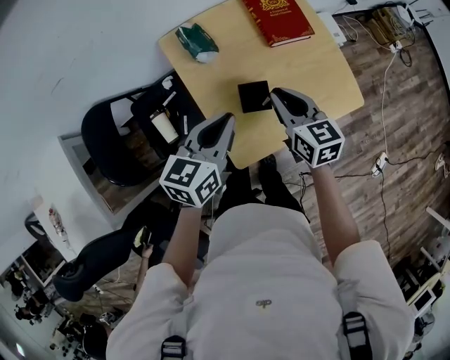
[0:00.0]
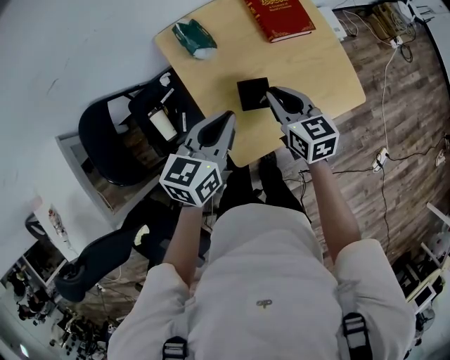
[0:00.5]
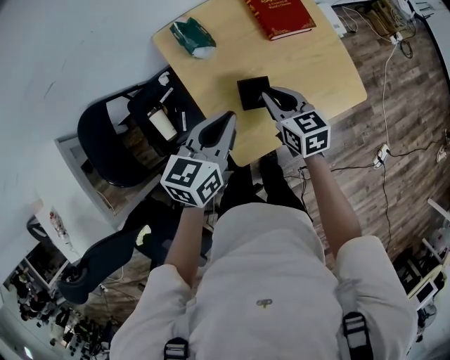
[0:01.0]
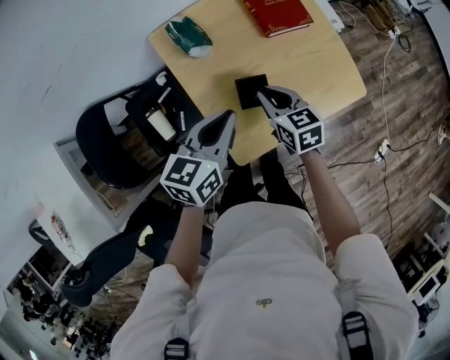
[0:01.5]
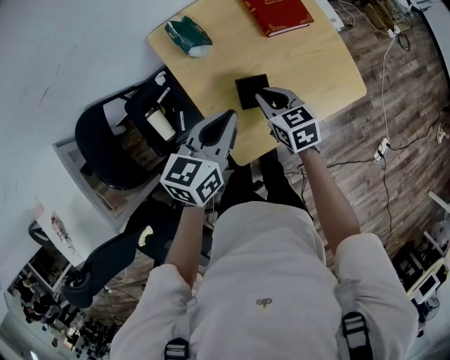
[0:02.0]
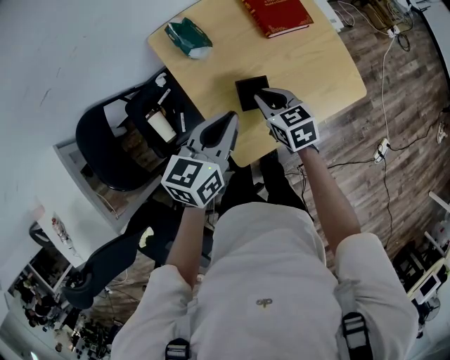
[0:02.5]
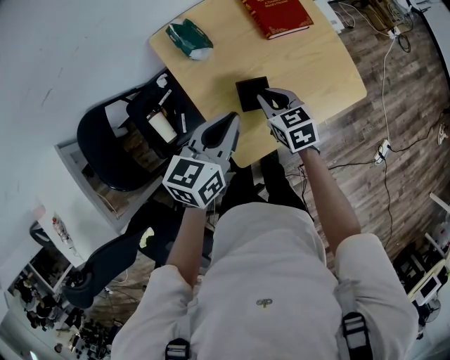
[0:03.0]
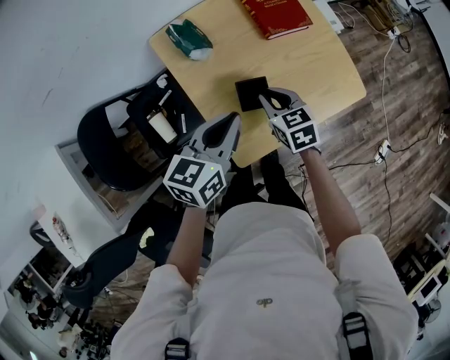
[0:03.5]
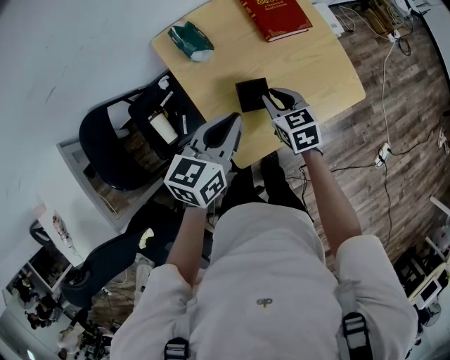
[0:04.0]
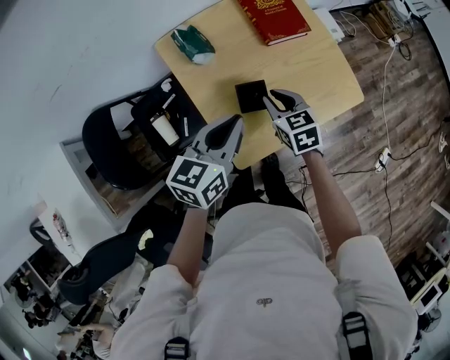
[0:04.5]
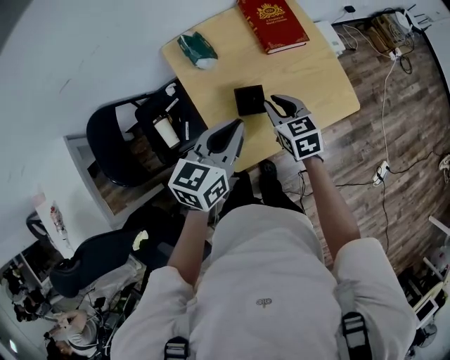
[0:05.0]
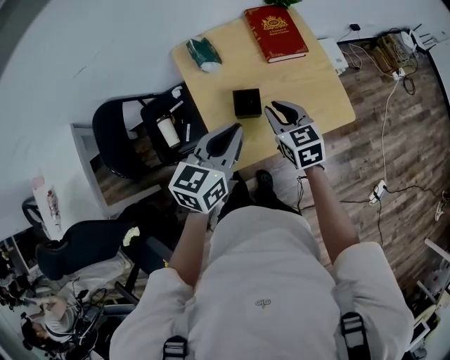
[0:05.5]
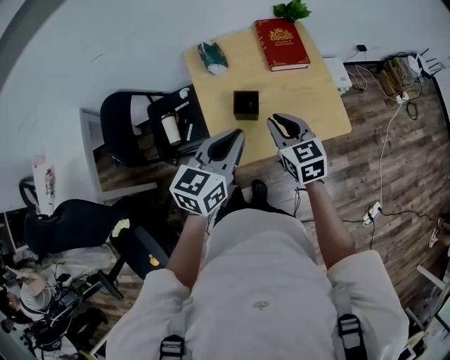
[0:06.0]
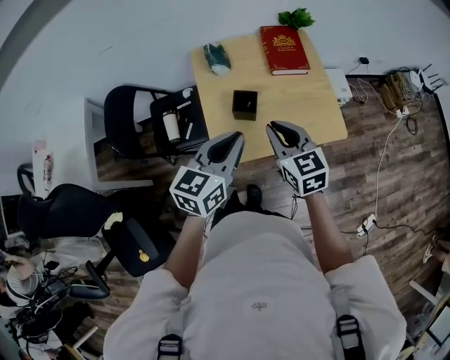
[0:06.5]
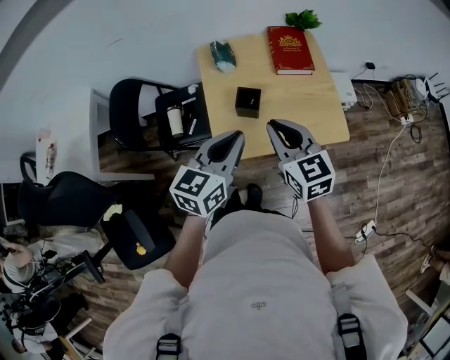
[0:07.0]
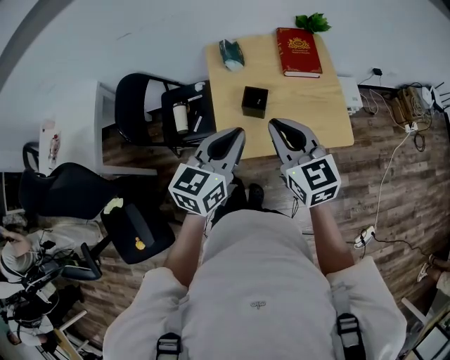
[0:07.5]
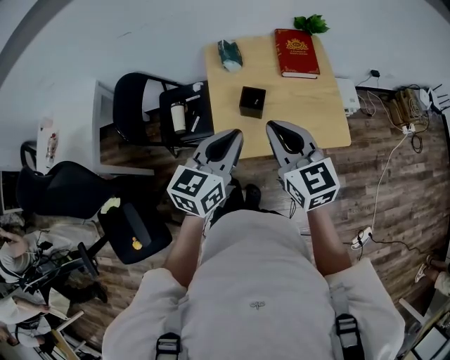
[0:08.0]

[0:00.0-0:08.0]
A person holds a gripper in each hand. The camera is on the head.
0:00.0 to 0:02.0: The right gripper is displaced downward by approximately 10 cm.
0:02.0 to 0:04.0: There are only small adjustments of the grippers.
0:04.0 to 0:06.0: The right gripper heads upward and backward, covering roughly 15 cm, while the left gripper goes about 15 cm backward, upward and to the right.
0:06.0 to 0:08.0: The left gripper travels backward by approximately 5 cm; the right gripper shifts approximately 15 cm upward and backward.

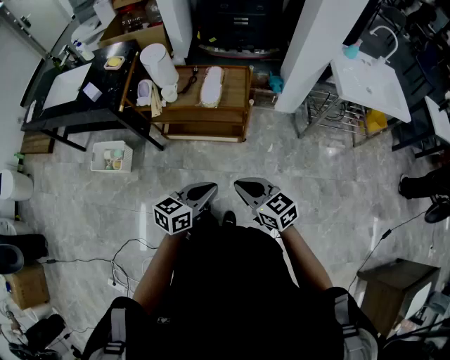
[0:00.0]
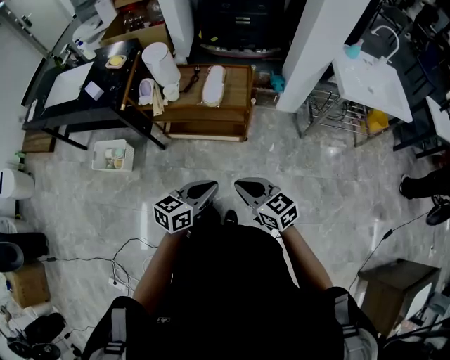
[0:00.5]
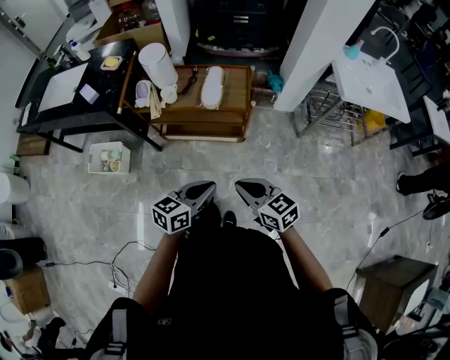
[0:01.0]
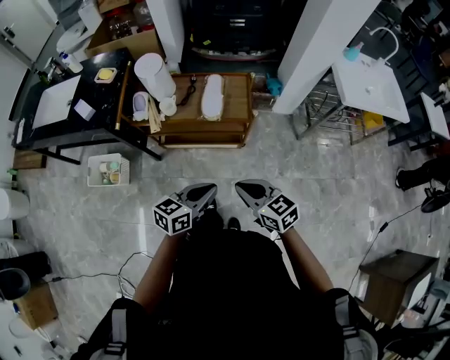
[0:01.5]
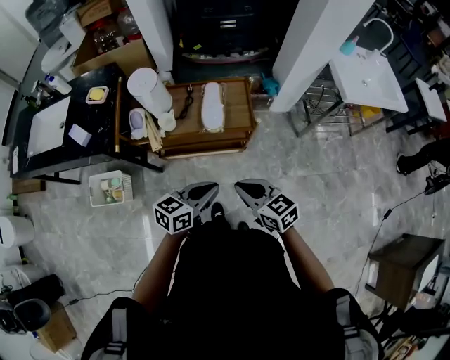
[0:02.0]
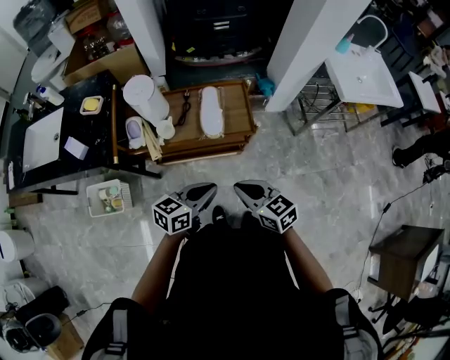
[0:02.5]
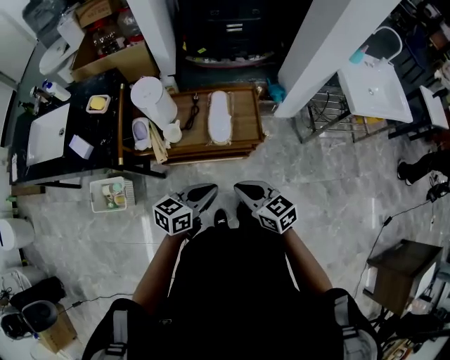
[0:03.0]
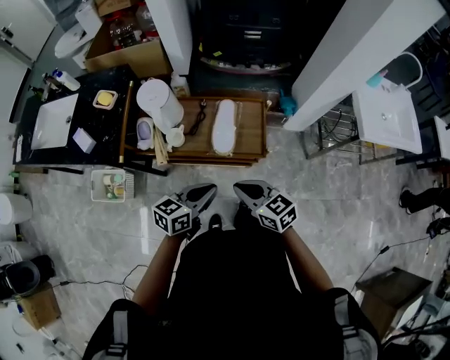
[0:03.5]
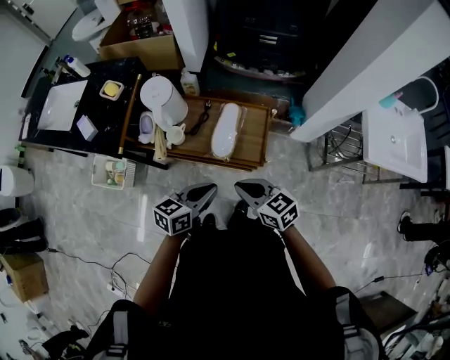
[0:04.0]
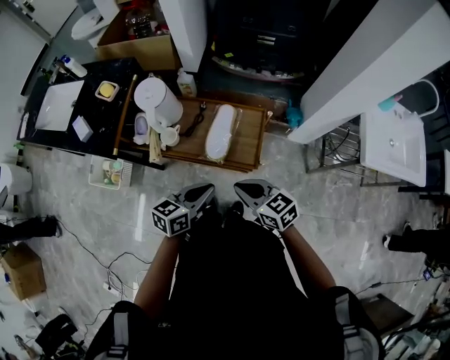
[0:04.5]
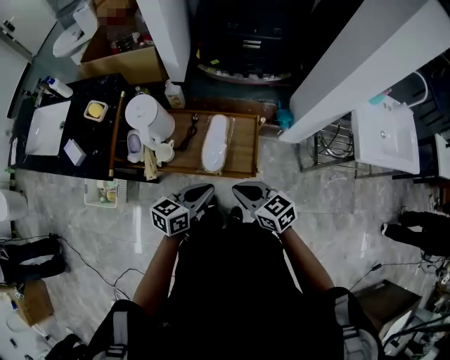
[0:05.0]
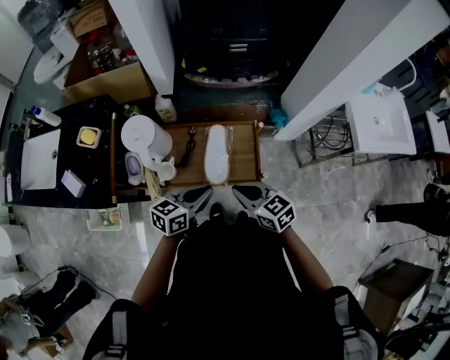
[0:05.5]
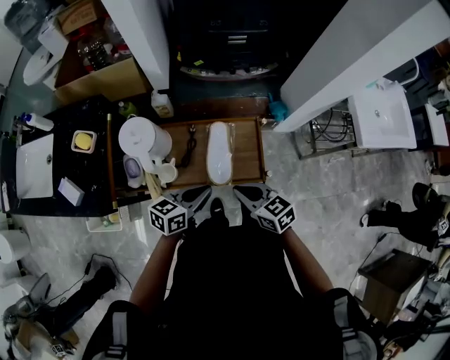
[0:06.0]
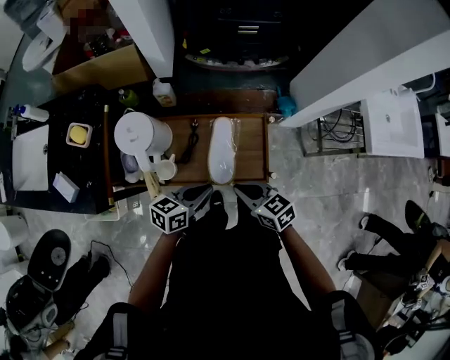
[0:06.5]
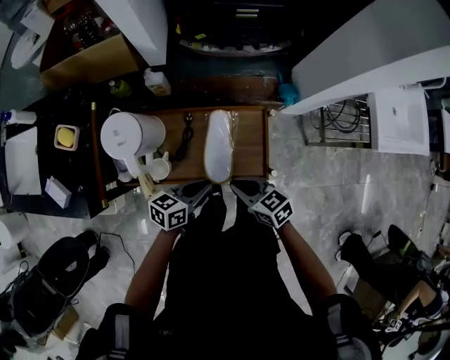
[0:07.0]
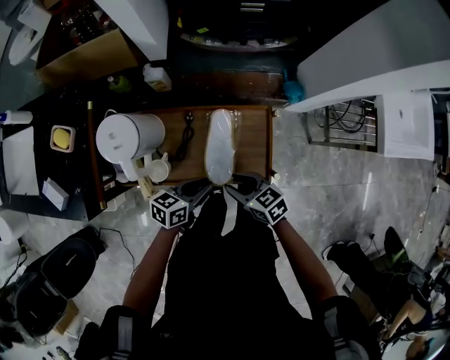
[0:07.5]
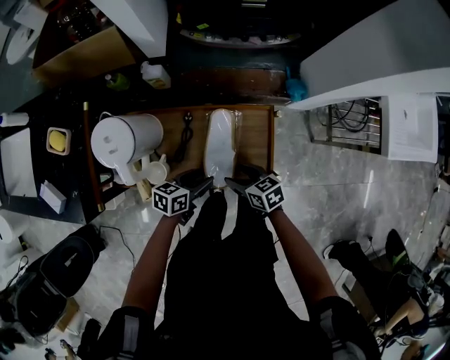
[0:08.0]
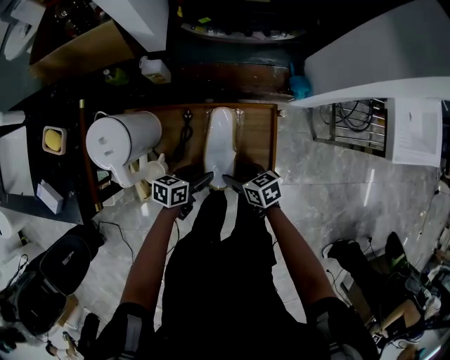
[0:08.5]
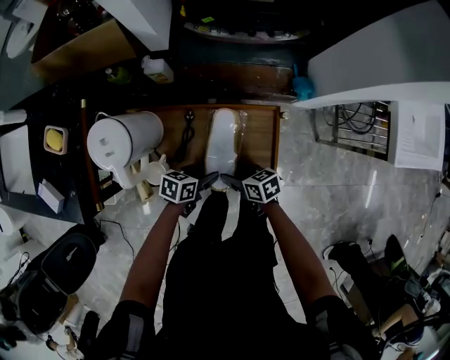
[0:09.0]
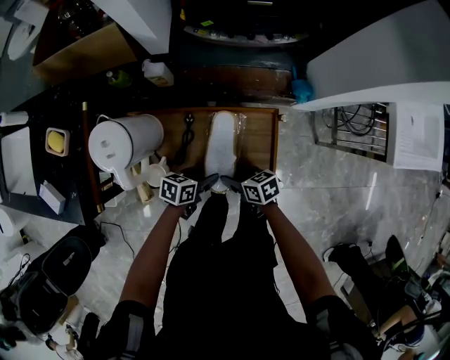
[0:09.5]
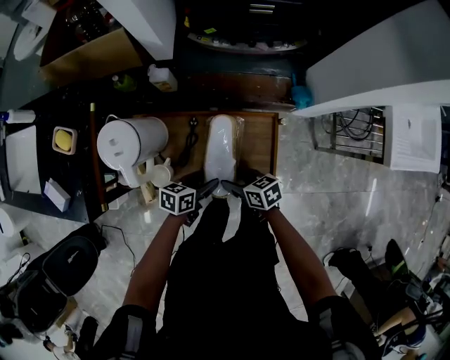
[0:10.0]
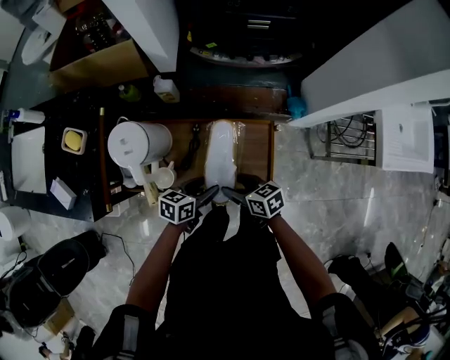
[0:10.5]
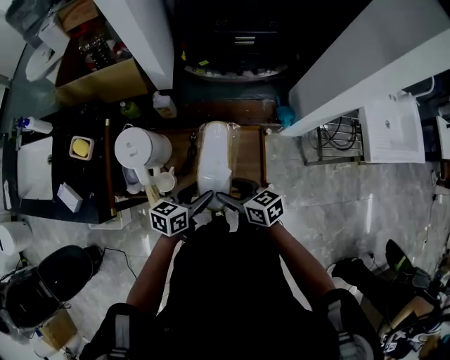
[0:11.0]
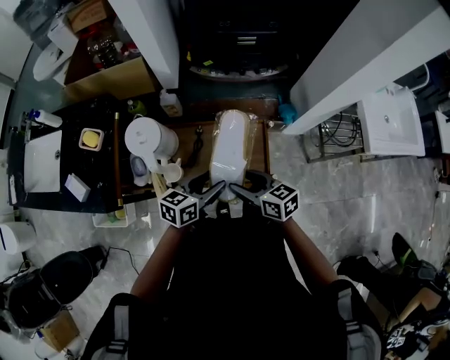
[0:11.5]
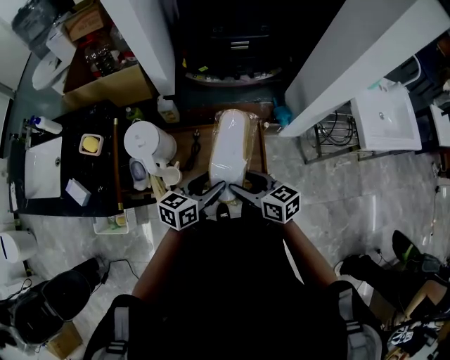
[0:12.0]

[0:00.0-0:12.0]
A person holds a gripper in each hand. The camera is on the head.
0:00.0 to 0:02.0: Both grippers move forward and to the left, approximately 20 cm.
0:02.0 to 0:04.0: Both grippers move forward, about 15 cm.
0:04.0 to 0:06.0: Both grippers move forward, approximately 10 cm.
0:06.0 to 0:08.0: The grippers both shift downward by some 20 cm. The right gripper opens up. The left gripper opens its fingers.
0:08.0 to 0:10.0: The grippers make only small movements.
0:10.0 to 0:12.0: The grippers both shift upward by about 20 cm. The left gripper rotates approximately 20 degrees; the right gripper turns by some 20 degrees.

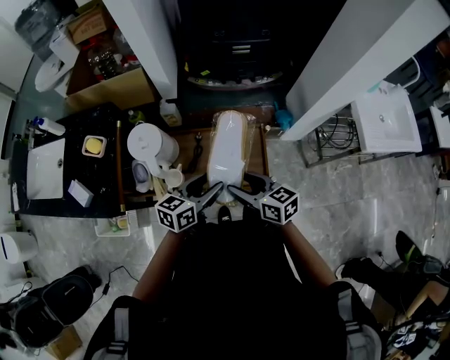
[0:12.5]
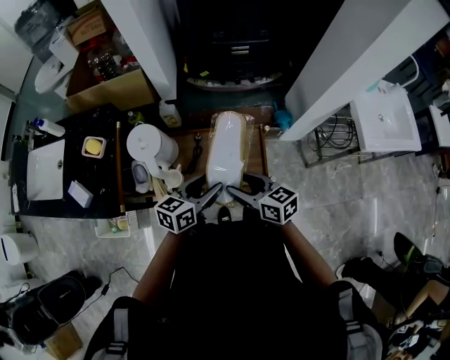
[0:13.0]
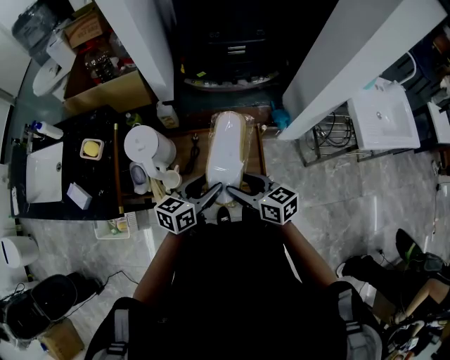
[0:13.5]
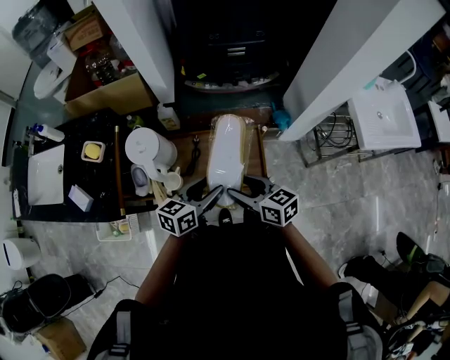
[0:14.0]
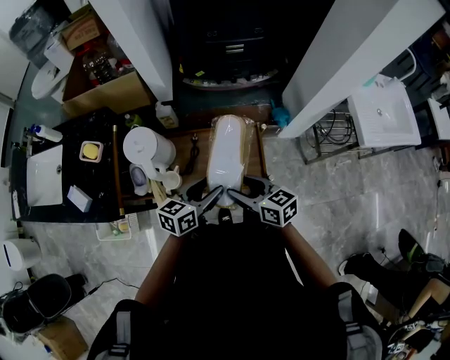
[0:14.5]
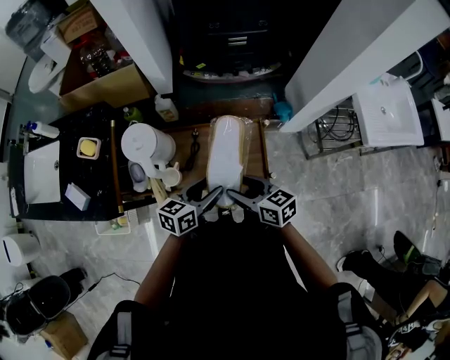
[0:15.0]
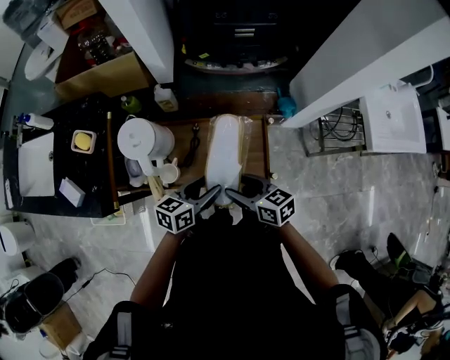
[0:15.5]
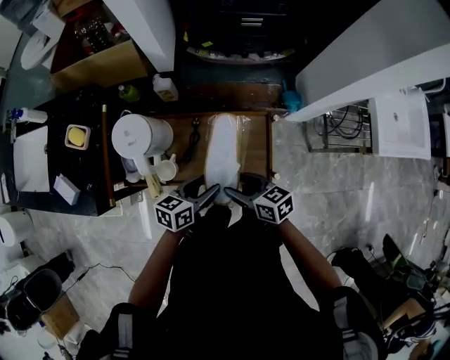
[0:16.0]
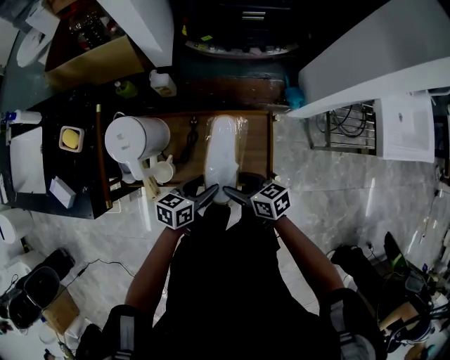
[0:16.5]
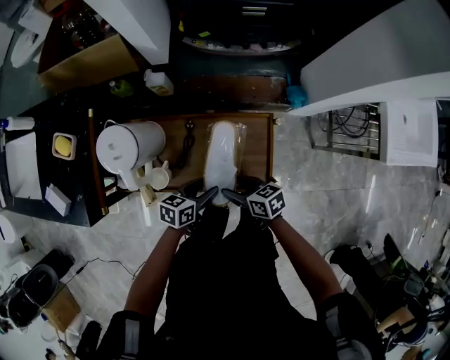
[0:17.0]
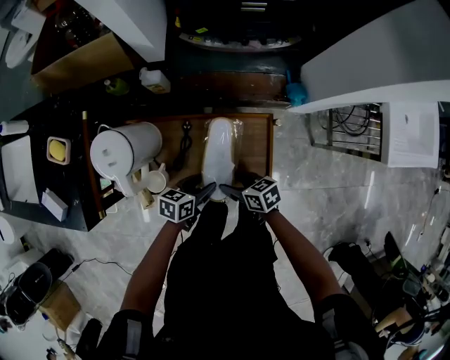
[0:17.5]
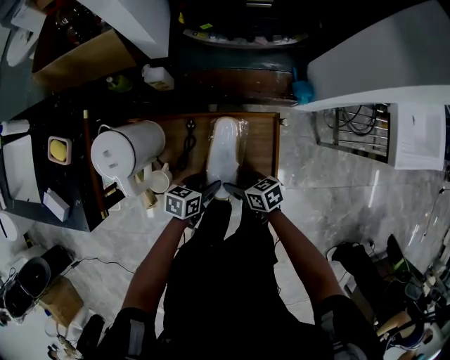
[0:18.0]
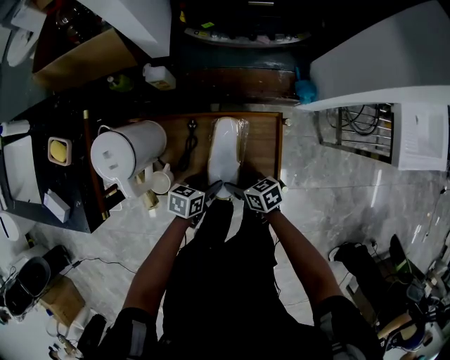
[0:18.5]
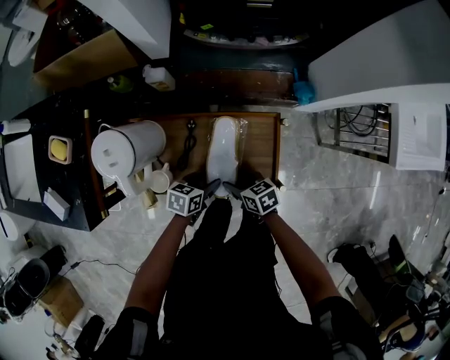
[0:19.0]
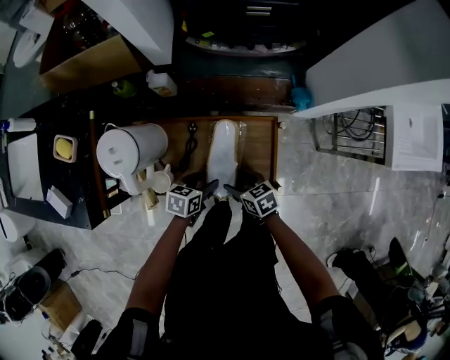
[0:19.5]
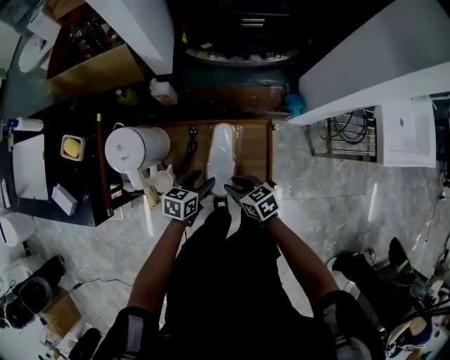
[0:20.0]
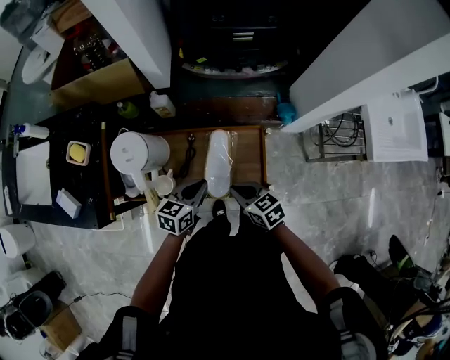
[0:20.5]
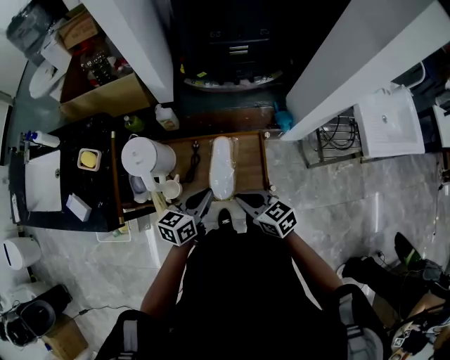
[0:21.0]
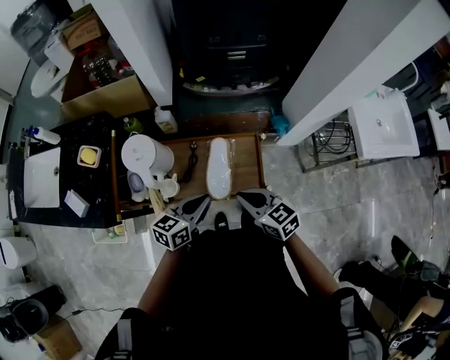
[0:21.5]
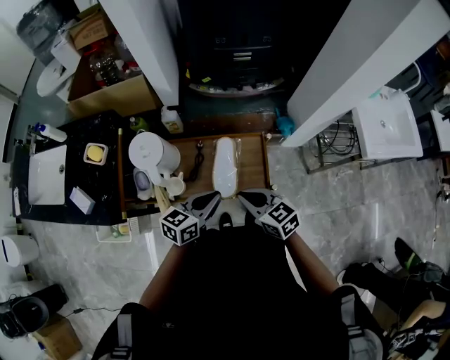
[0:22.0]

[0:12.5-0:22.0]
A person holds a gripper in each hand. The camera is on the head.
0:12.5 to 0:14.5: The grippers stay close to where they were, moving slightly.
0:14.5 to 0:16.5: The two grippers go some 10 cm downward.
0:16.5 to 0:18.0: The two grippers go approximately 10 cm downward.
0:18.0 to 0:20.0: Both grippers travel together upward, some 5 cm. The right gripper closes its fingers.
0:20.0 to 0:22.0: The two grippers go some 20 cm upward. The left gripper turns by about 20 degrees, and closes its fingers. The right gripper swivels roughly 20 degrees, and closes up.
